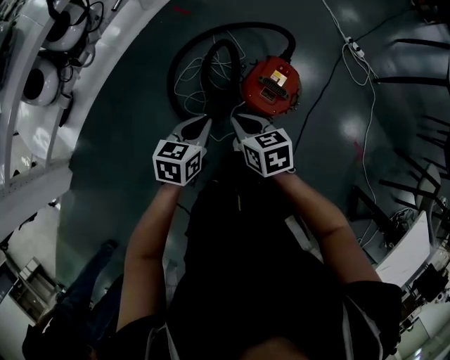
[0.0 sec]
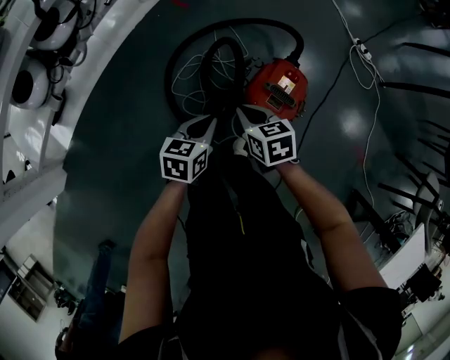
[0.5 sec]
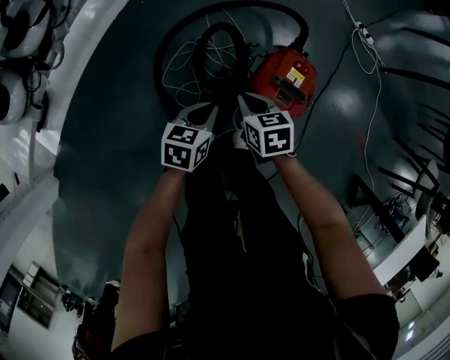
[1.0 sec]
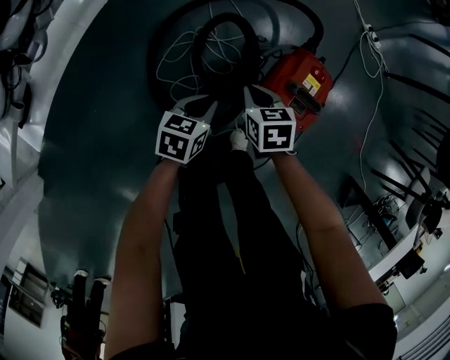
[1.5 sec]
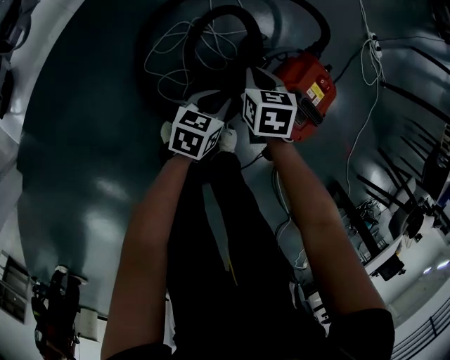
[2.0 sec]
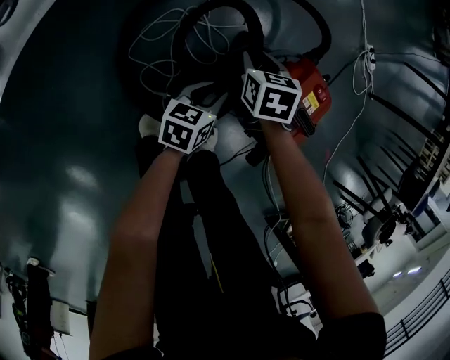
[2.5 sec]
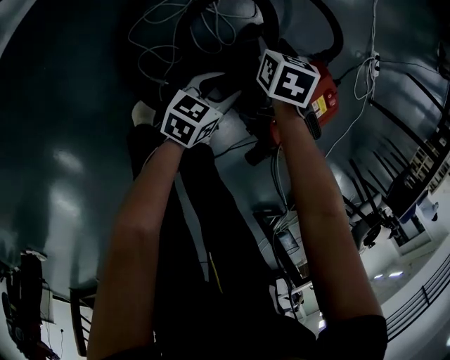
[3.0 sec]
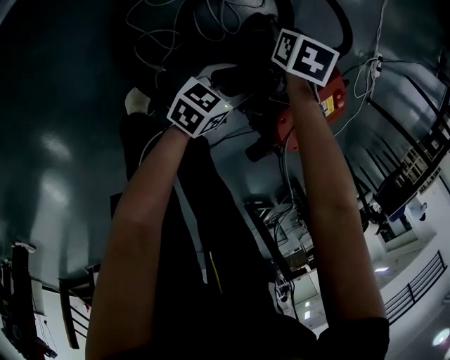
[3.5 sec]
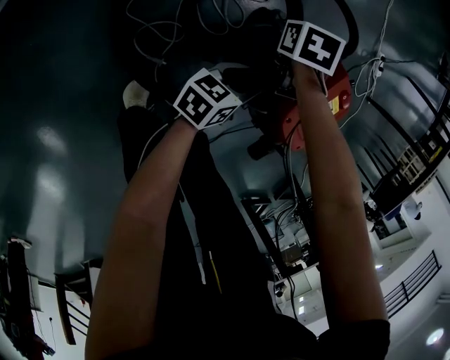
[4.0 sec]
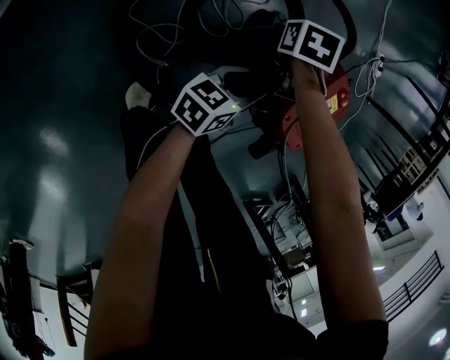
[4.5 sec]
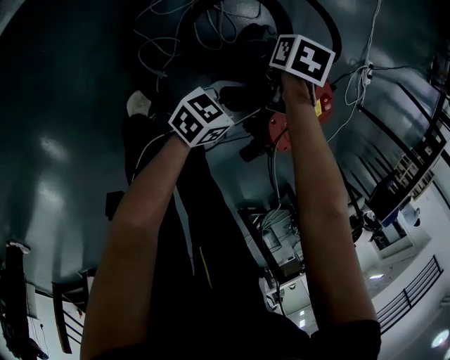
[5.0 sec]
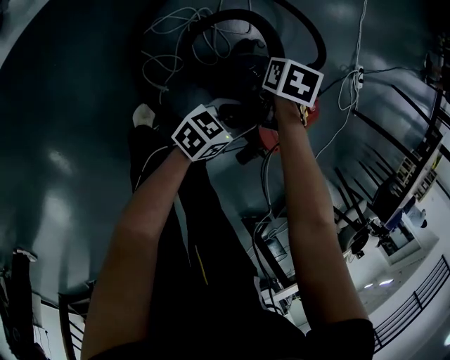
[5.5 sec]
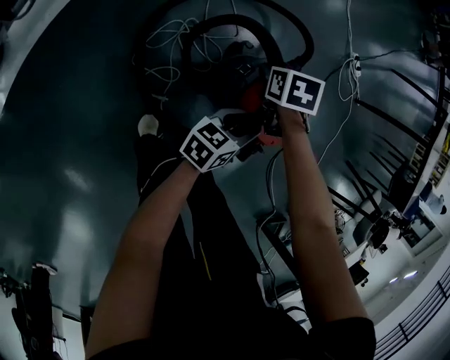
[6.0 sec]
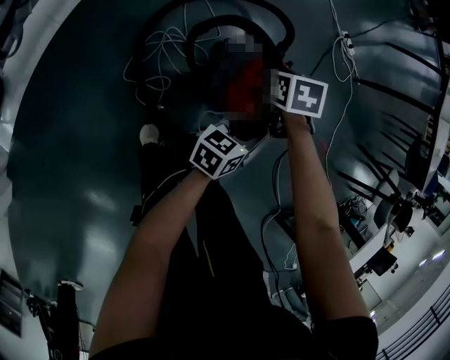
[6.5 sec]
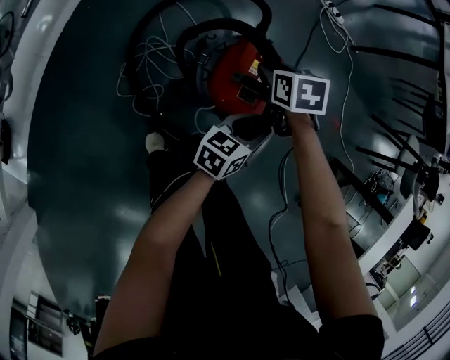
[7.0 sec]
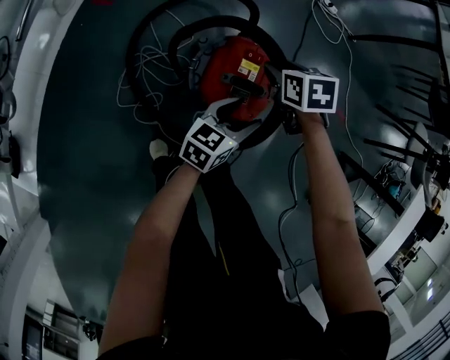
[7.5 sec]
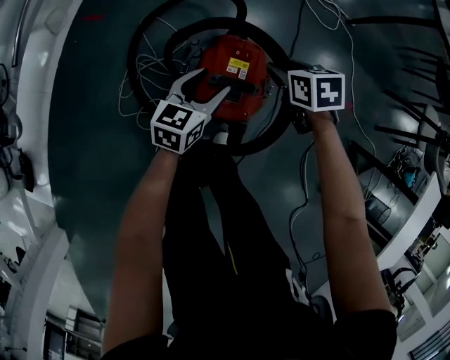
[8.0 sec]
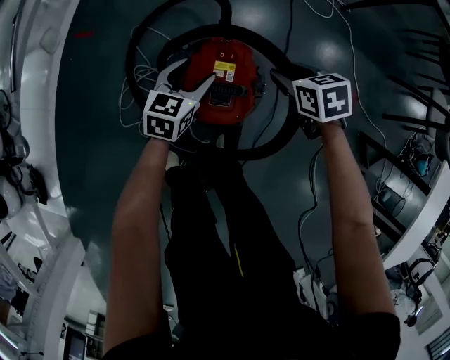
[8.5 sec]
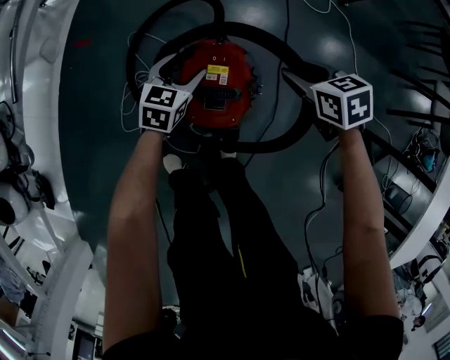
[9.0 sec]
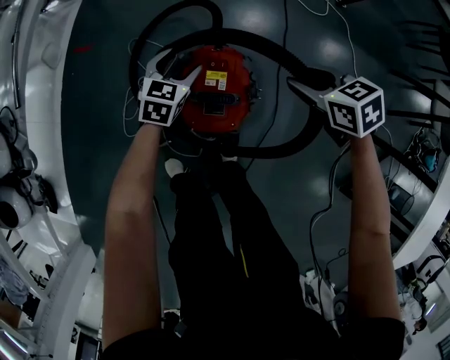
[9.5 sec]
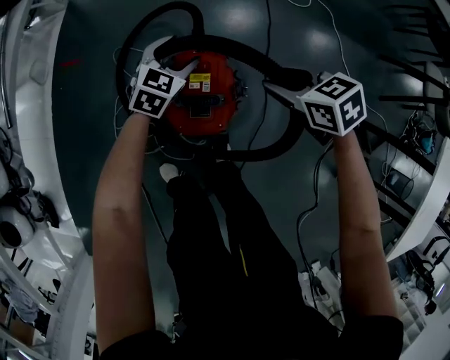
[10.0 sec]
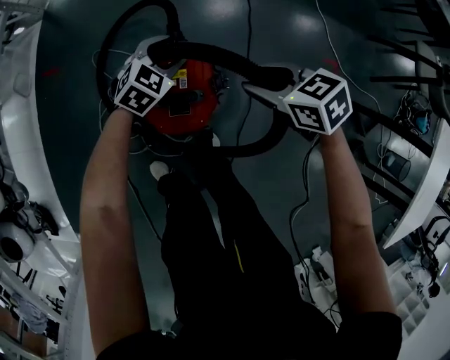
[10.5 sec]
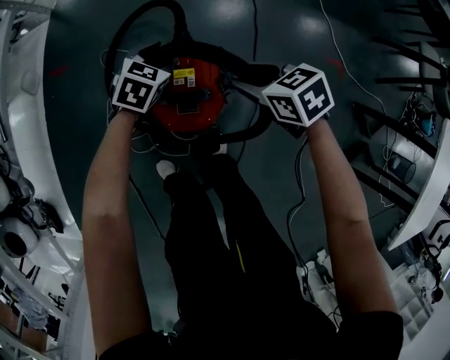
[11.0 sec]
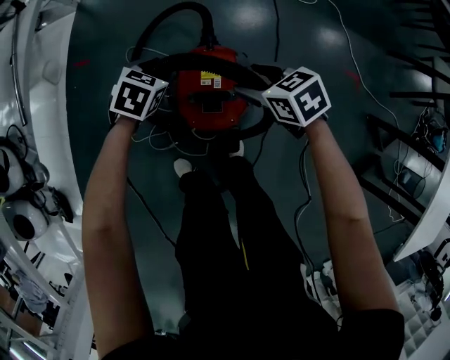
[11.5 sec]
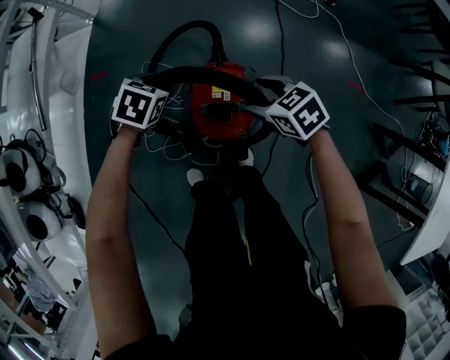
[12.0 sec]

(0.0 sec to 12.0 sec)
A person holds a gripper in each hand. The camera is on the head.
0.0 sec - 2.0 sec: The grippers both shift downward and forward by roughly 35 cm. The right gripper changes its angle by approximately 20 degrees.
2.0 sec - 4.0 sec: The right gripper heads downward, covering roughly 10 cm, changes its angle by about 20 degrees, and opens its fingers. Meanwhile the left gripper travels downward by approximately 5 cm, and swivels about 20 degrees.
4.0 sec - 6.0 sec: The grippers both shift upward by approximately 15 cm.
6.0 sec - 8.0 sec: The right gripper goes some 25 cm to the right, while the left gripper goes about 10 cm forward and upward, goes to the right and returns, some 15 cm each way, and turns by roughly 30 degrees.
8.0 sec - 10.0 sec: The left gripper heads forward and to the right, covering about 15 cm, and swivels roughly 30 degrees. The right gripper goes some 10 cm to the right and upward.
10.0 sec - 12.0 sec: The left gripper goes approximately 15 cm to the left and upward, and rotates approximately 30 degrees; the right gripper moves to the left, approximately 10 cm, and opens its fingers.

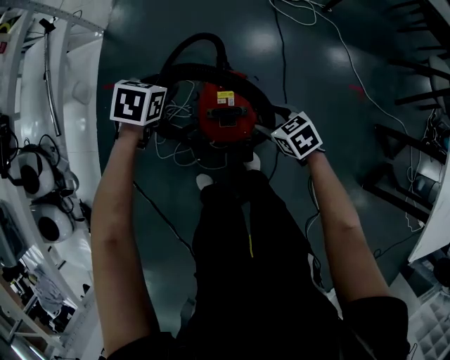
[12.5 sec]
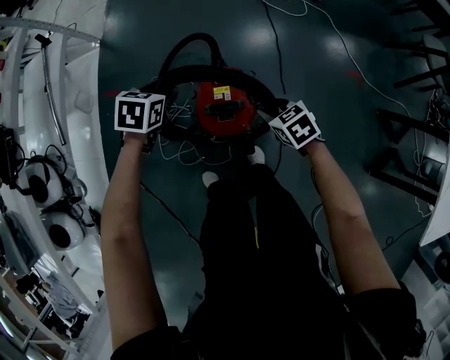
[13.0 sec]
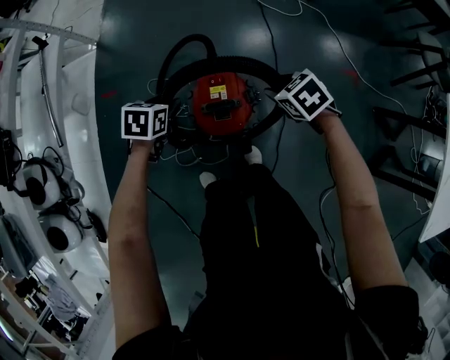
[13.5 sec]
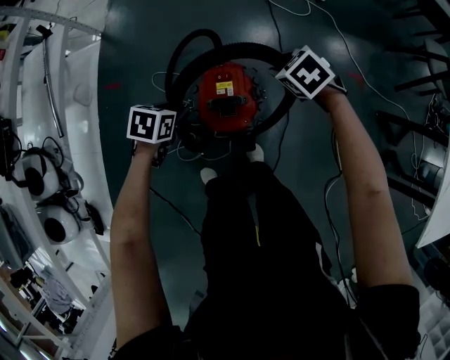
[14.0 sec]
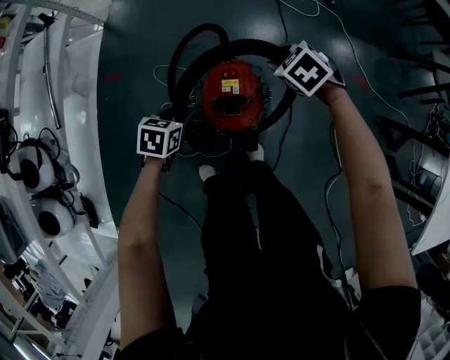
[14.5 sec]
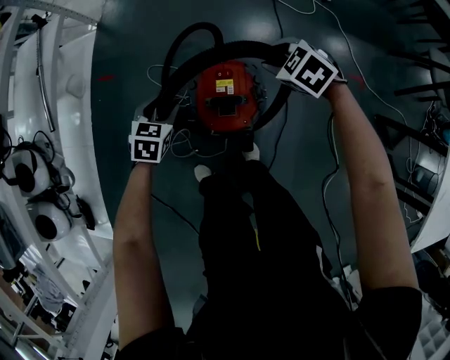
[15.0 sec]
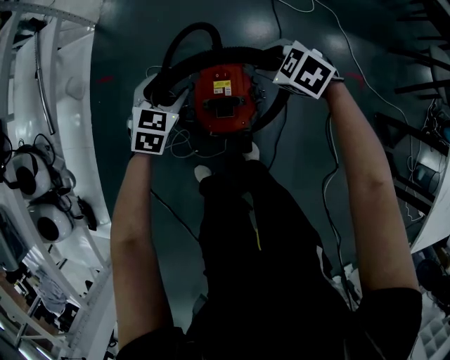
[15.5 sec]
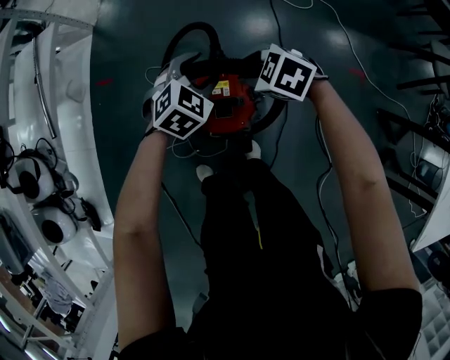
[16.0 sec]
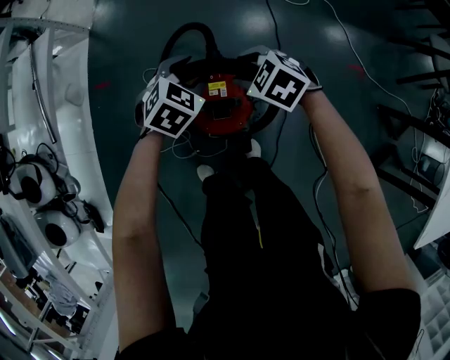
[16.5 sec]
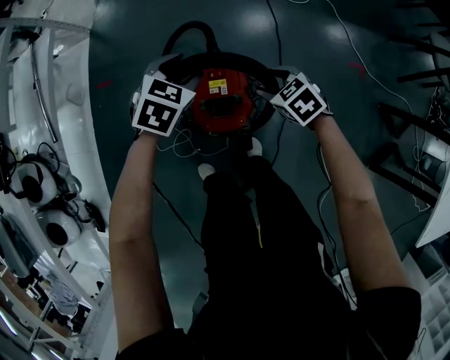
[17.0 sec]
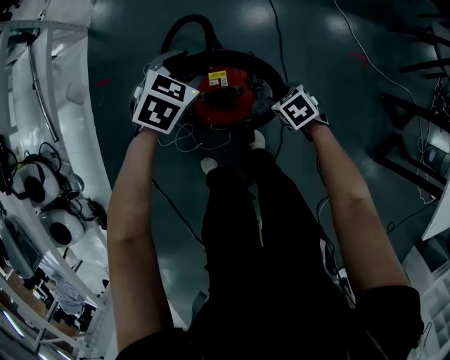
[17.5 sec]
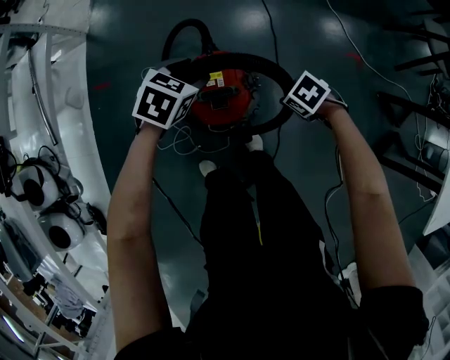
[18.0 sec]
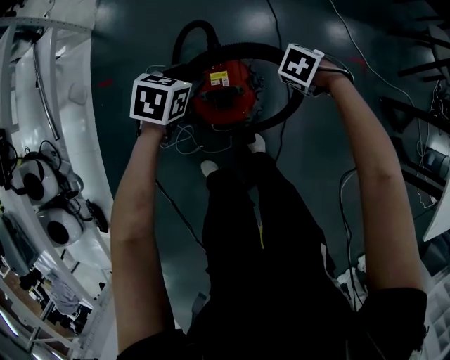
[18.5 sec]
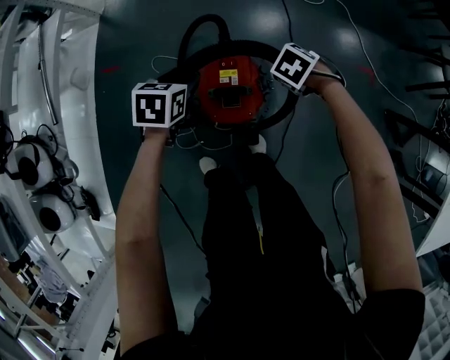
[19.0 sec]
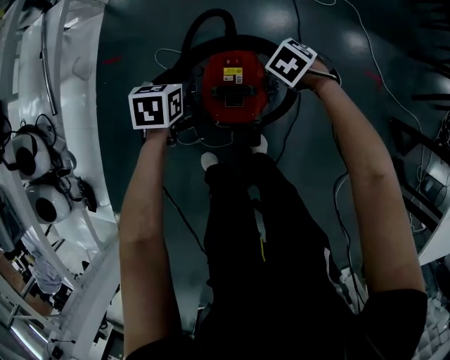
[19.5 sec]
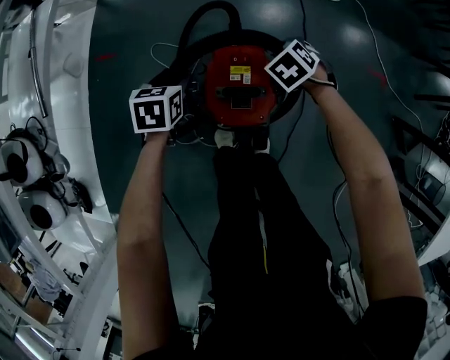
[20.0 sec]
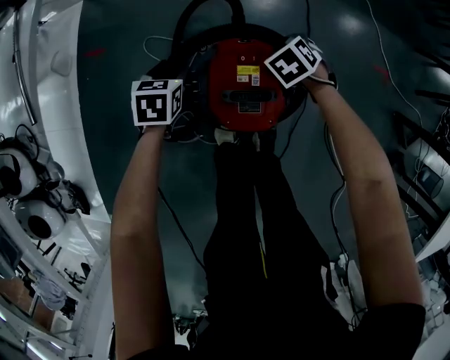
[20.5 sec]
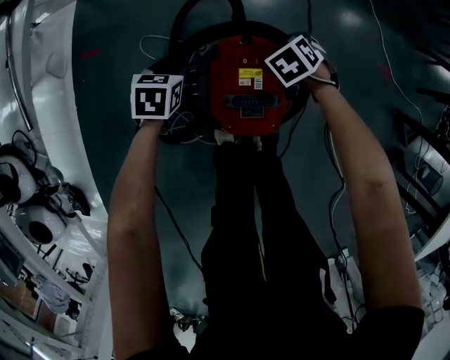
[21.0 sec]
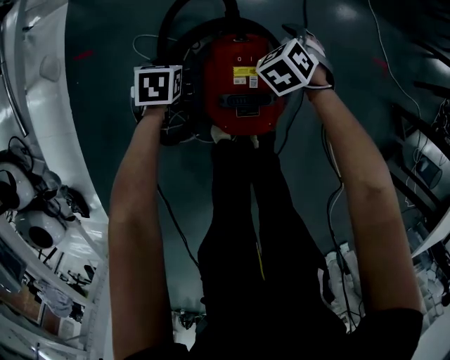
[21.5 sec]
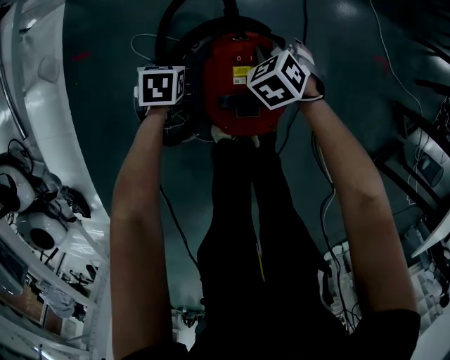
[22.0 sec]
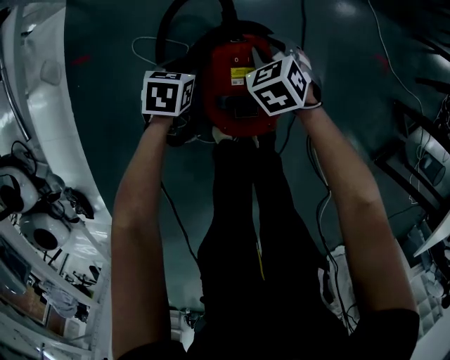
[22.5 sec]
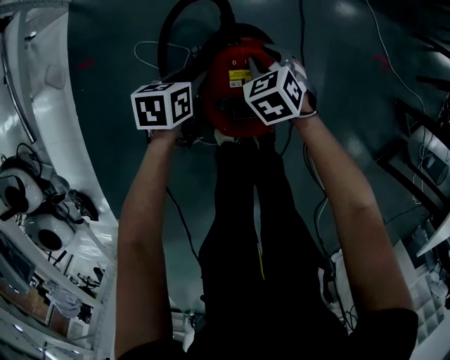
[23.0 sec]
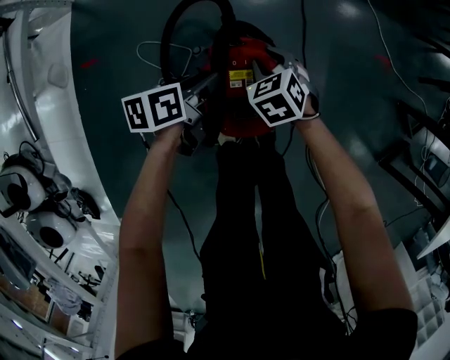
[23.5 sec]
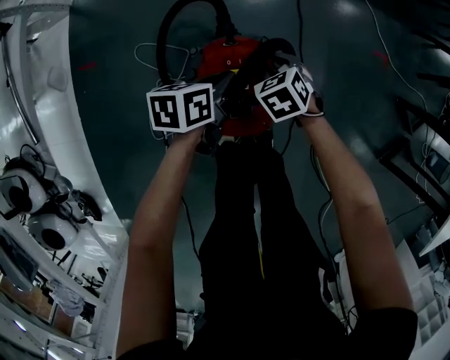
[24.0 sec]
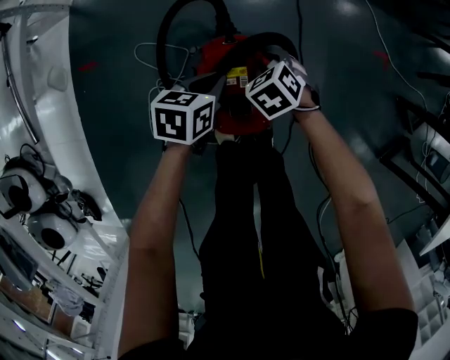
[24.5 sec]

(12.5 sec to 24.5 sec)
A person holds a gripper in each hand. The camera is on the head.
12.5 sec - 14.5 sec: The left gripper travels backward and downward by about 15 cm. The right gripper heads forward and upward, covering about 15 cm, rotates approximately 30 degrees, and closes its fingers.
14.5 sec - 16.5 sec: The right gripper is displaced to the left by some 5 cm. The left gripper is displaced to the right and forward by about 15 cm, and turns by about 40 degrees.
16.5 sec - 18.5 sec: The left gripper moves approximately 5 cm, and rotates approximately 30 degrees, while the right gripper ends up some 15 cm from where it was, and swivels some 30 degrees.
18.5 sec - 20.5 sec: The right gripper shifts by approximately 20 cm, and rotates roughly 20 degrees; the left gripper is displaced downward by some 20 cm, and swivels approximately 20 degrees.
20.5 sec - 22.5 sec: The left gripper goes roughly 5 cm downward.
22.5 sec - 24.5 sec: The right gripper moves about 5 cm, while the left gripper goes about 15 cm to the right and upward, and closes up.

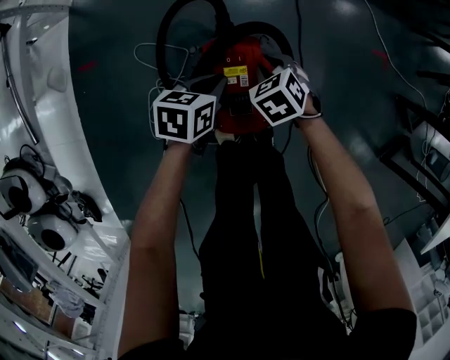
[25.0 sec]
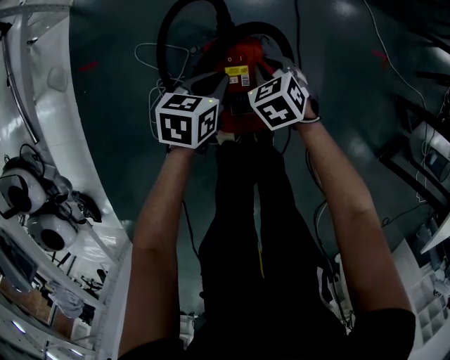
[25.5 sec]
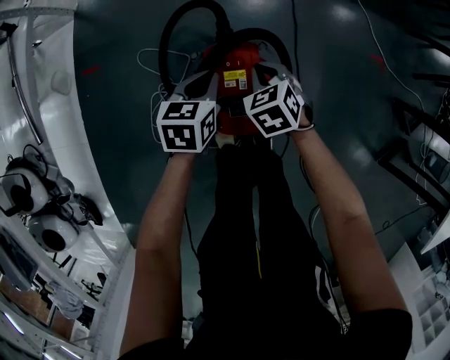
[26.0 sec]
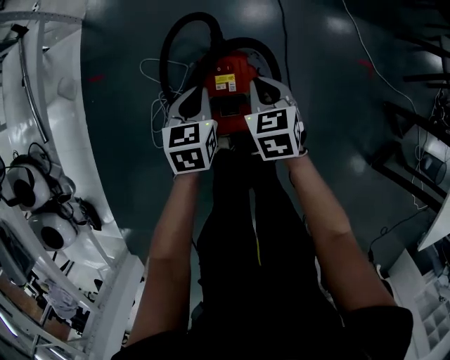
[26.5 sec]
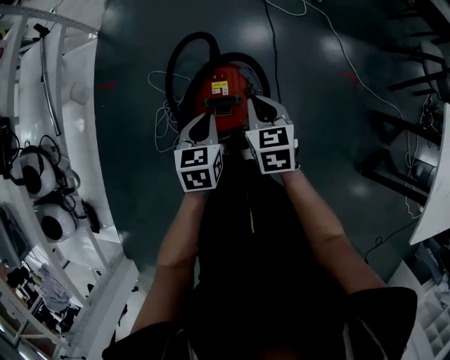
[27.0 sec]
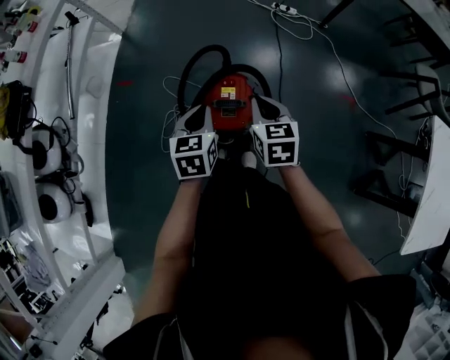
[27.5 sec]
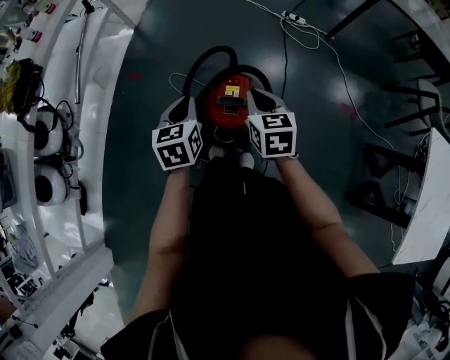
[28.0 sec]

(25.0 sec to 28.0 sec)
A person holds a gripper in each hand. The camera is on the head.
25.0 sec - 26.5 sec: Both grippers travel together upward, about 10 cm. The right gripper turns by about 20 degrees. The left gripper rotates about 30 degrees.
26.5 sec - 28.0 sec: The right gripper goes approximately 25 cm upward; the left gripper heads upward and backward, covering approximately 25 cm.
